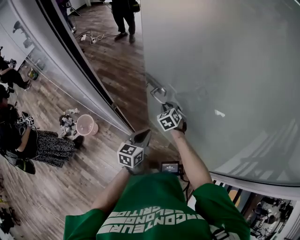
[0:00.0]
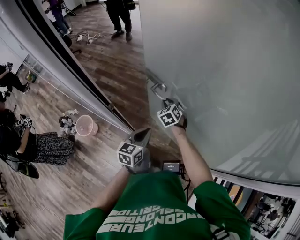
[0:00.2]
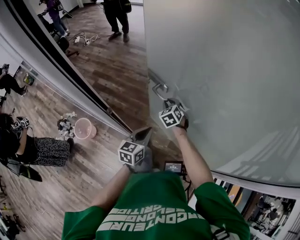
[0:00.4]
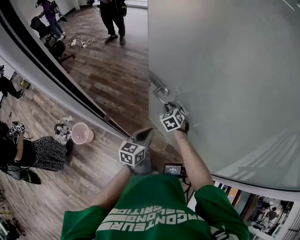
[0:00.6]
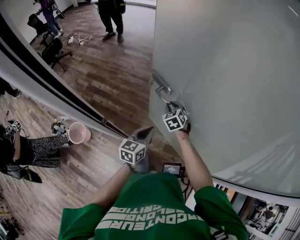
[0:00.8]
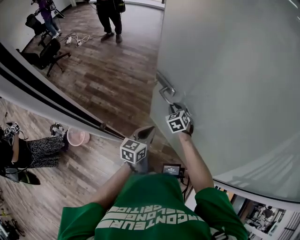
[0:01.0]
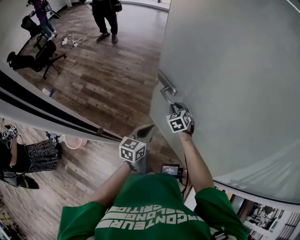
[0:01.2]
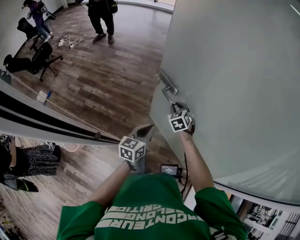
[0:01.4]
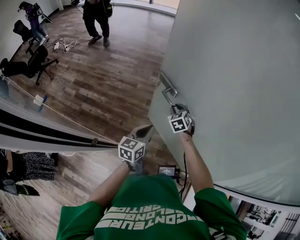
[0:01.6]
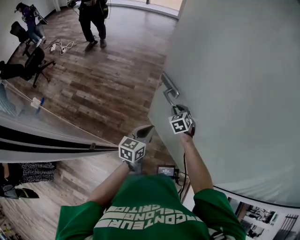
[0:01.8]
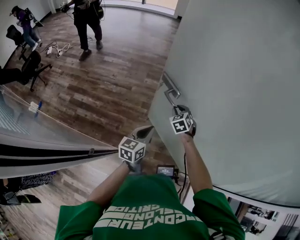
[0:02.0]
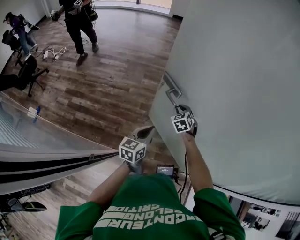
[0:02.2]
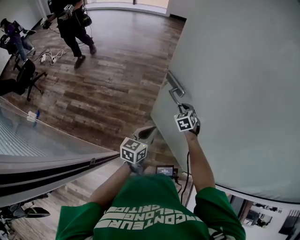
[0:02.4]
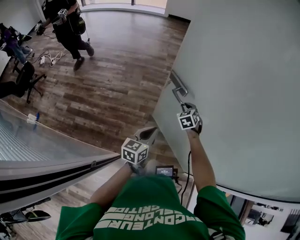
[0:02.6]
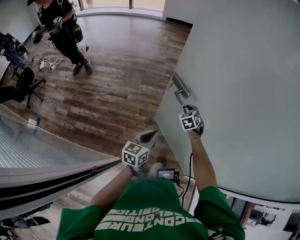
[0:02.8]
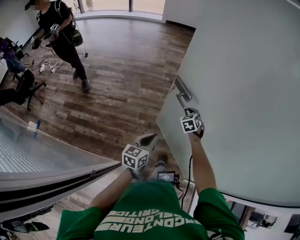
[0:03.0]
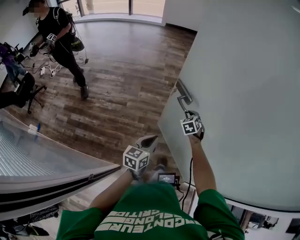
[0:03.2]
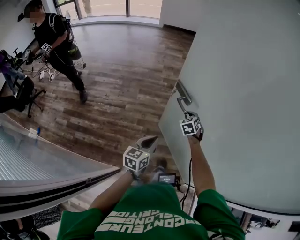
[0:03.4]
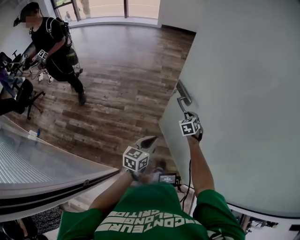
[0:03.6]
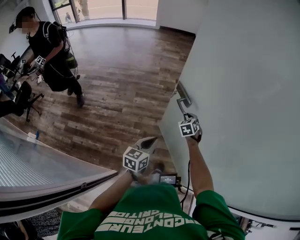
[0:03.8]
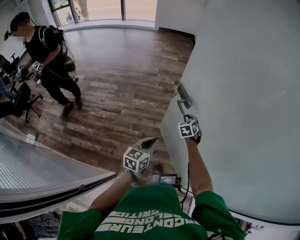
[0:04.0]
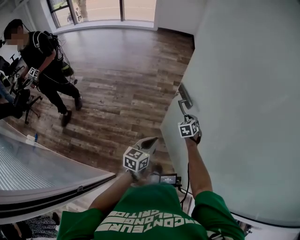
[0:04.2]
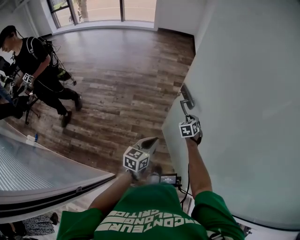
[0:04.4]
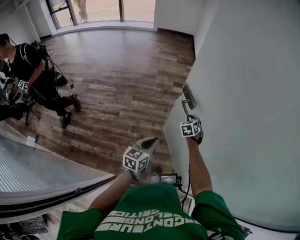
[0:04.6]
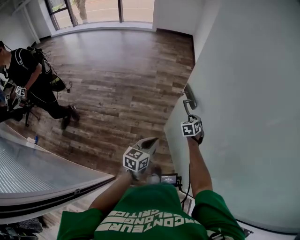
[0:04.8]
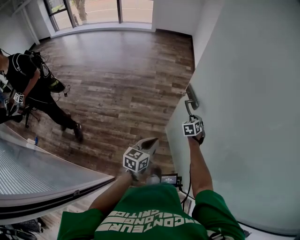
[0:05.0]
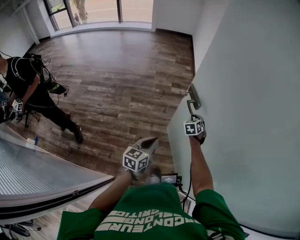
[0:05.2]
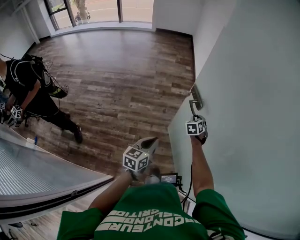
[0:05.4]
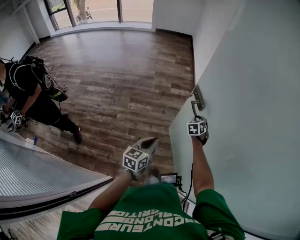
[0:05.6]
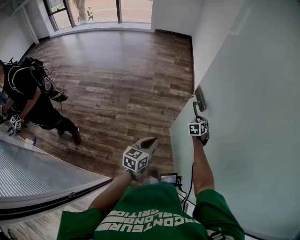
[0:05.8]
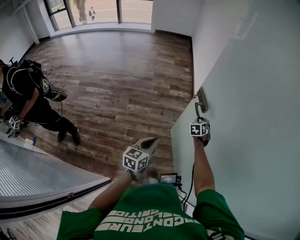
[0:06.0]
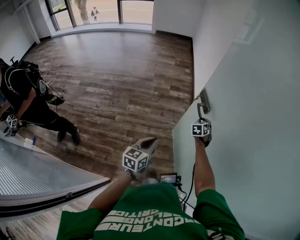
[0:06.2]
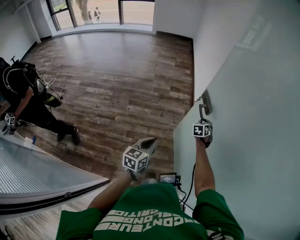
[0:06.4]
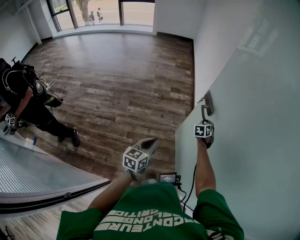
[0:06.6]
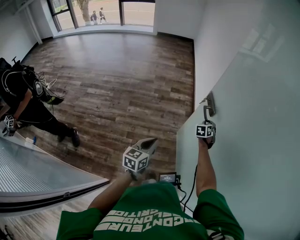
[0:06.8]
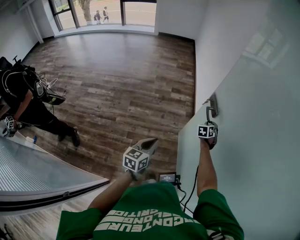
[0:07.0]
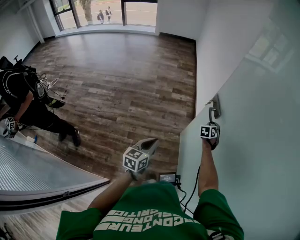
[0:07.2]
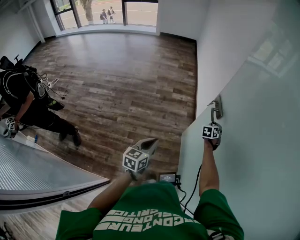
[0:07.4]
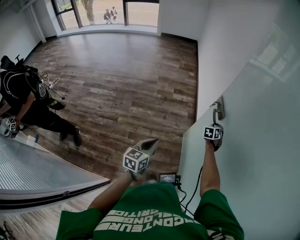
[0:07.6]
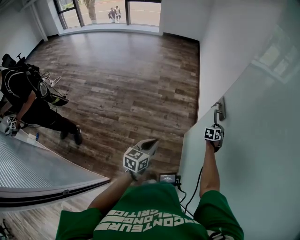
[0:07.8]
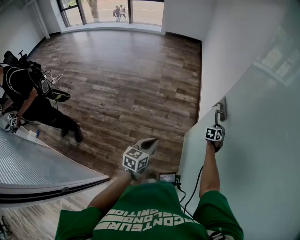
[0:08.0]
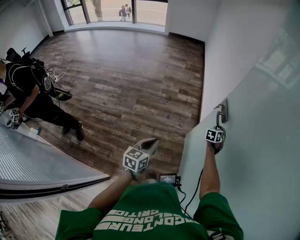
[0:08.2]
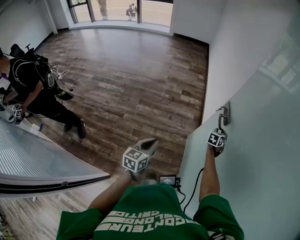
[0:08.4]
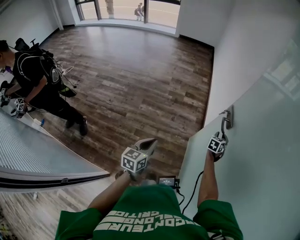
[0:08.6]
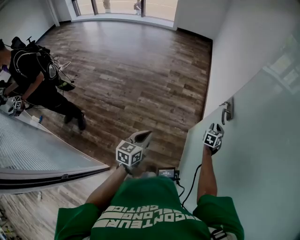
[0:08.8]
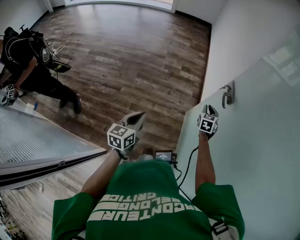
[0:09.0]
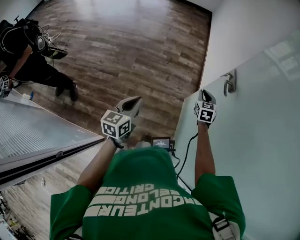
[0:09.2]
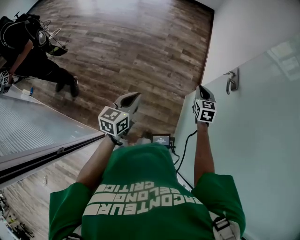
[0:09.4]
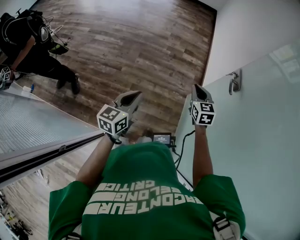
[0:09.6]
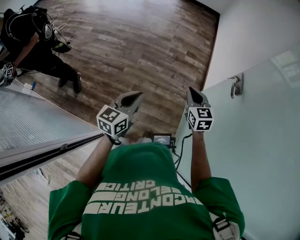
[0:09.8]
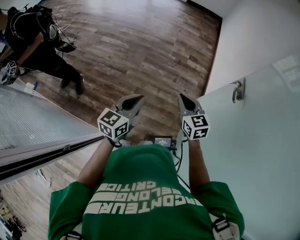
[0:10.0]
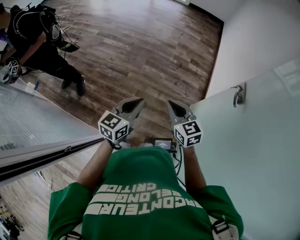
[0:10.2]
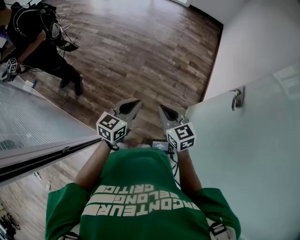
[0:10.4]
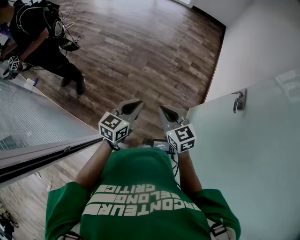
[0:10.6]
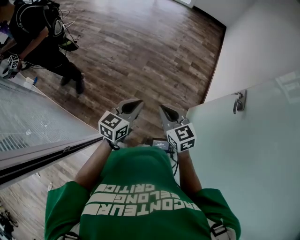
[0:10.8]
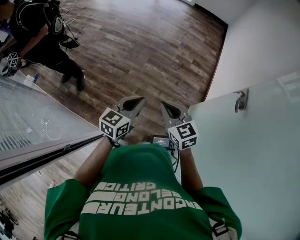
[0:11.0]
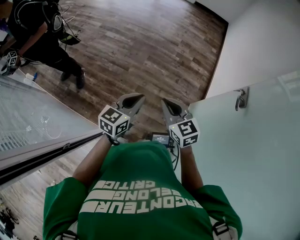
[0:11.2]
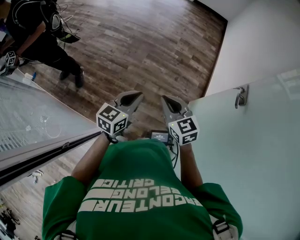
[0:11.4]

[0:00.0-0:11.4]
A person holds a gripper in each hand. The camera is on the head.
0:00.0 to 0:01.4: The right gripper is displaced forward and to the right by approximately 15 cm, while the left gripper travels forward by about 15 cm.
0:01.4 to 0:02.8: The right gripper is displaced forward and to the right by roughly 20 cm, while the left gripper shifts about 10 cm forward.
0:02.8 to 0:04.2: Both grippers travel together forward and to the right, about 15 cm.
0:04.2 to 0:05.6: The left gripper is displaced forward by some 5 cm. The right gripper shifts about 15 cm forward and to the right.
0:05.6 to 0:07.2: The right gripper travels to the right and forward by some 15 cm.
0:07.2 to 0:08.6: The grippers make only small movements.
0:08.6 to 0:10.0: The left gripper moves some 15 cm. The right gripper changes place by some 40 cm, rotates roughly 60 degrees, and closes.
0:10.0 to 0:11.4: The right gripper heads to the left, covering some 10 cm.

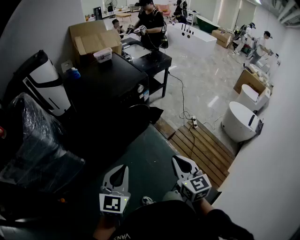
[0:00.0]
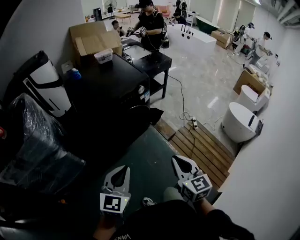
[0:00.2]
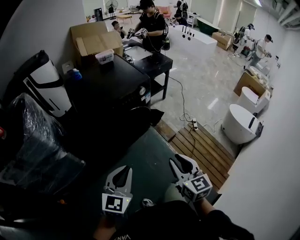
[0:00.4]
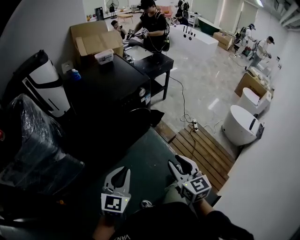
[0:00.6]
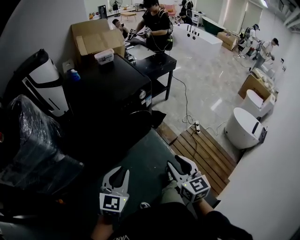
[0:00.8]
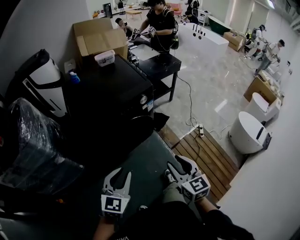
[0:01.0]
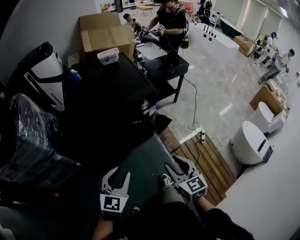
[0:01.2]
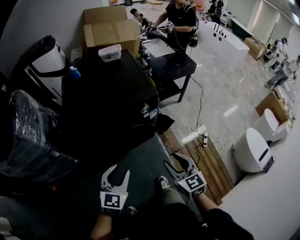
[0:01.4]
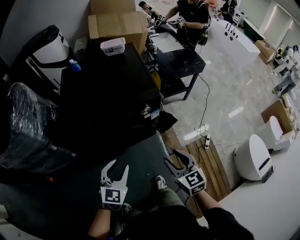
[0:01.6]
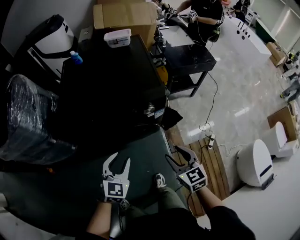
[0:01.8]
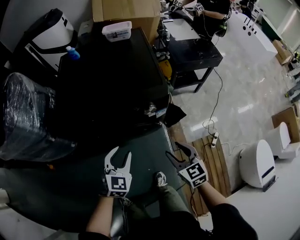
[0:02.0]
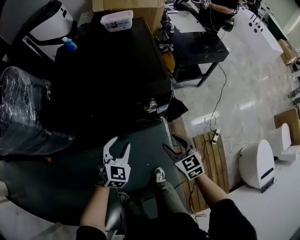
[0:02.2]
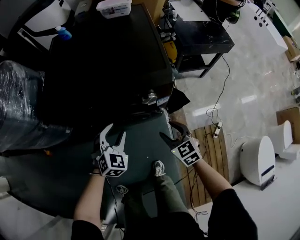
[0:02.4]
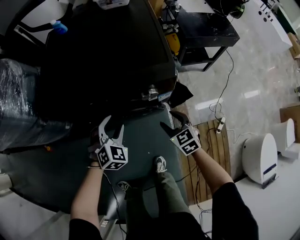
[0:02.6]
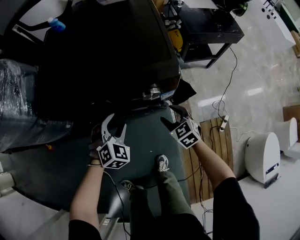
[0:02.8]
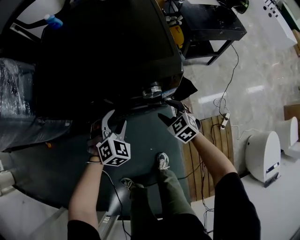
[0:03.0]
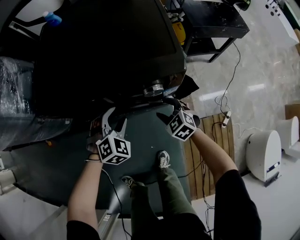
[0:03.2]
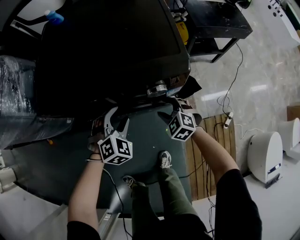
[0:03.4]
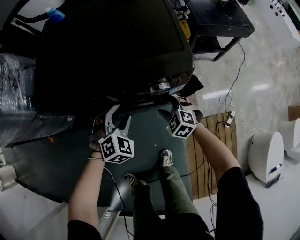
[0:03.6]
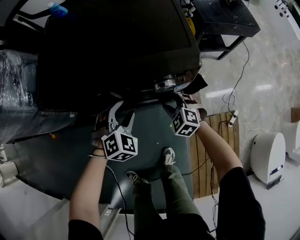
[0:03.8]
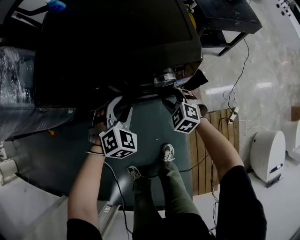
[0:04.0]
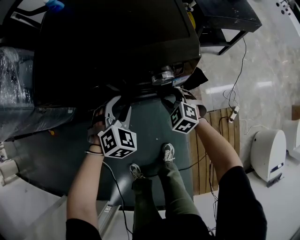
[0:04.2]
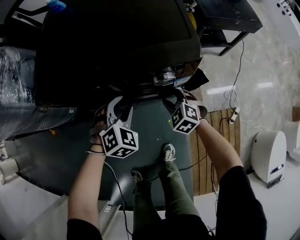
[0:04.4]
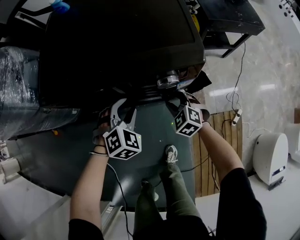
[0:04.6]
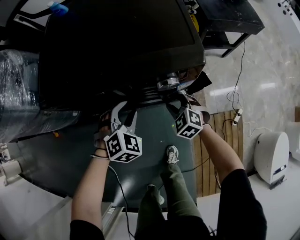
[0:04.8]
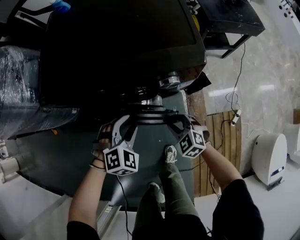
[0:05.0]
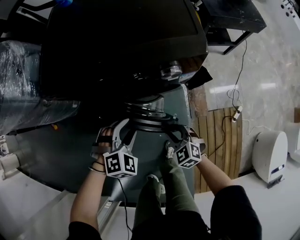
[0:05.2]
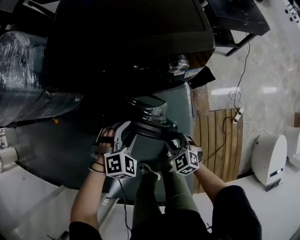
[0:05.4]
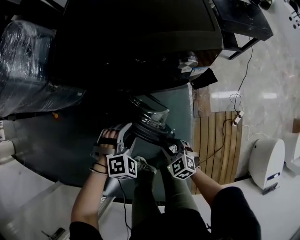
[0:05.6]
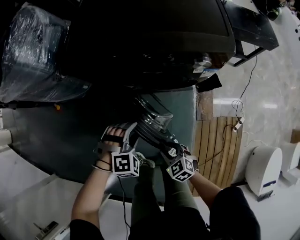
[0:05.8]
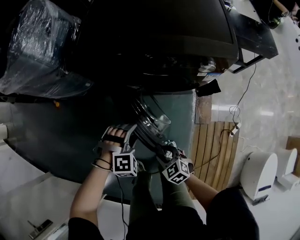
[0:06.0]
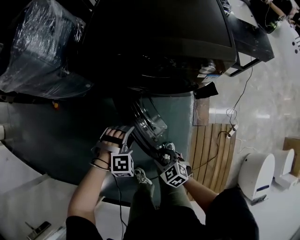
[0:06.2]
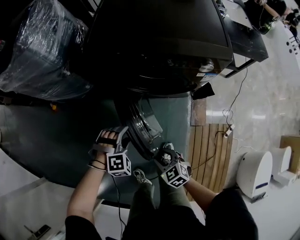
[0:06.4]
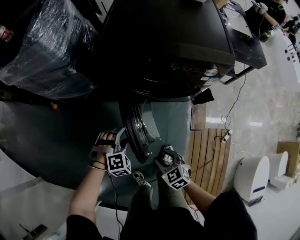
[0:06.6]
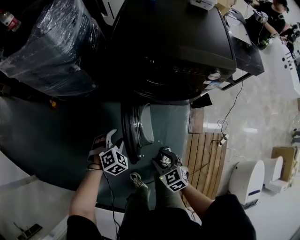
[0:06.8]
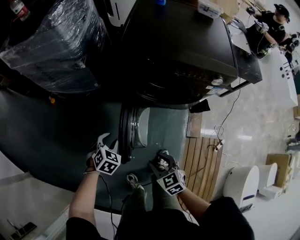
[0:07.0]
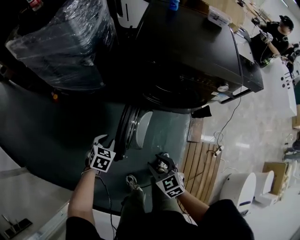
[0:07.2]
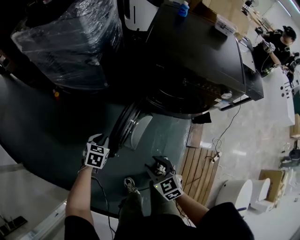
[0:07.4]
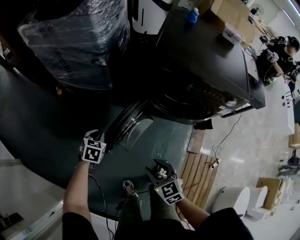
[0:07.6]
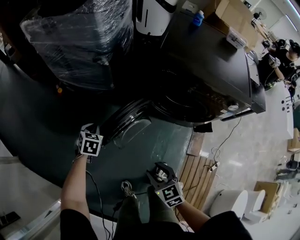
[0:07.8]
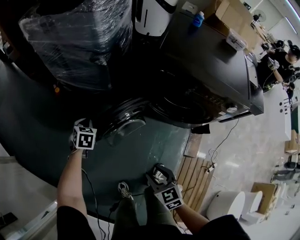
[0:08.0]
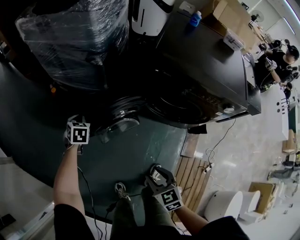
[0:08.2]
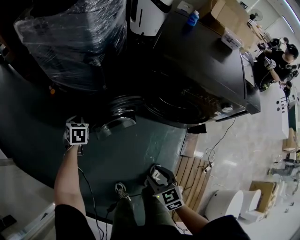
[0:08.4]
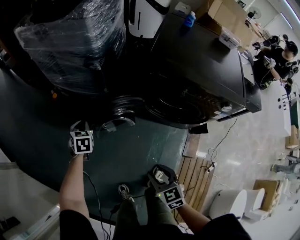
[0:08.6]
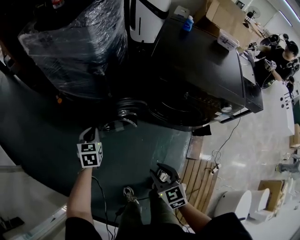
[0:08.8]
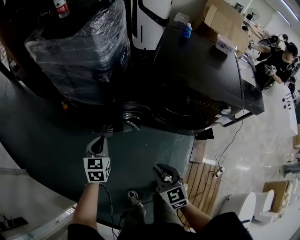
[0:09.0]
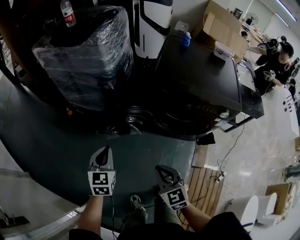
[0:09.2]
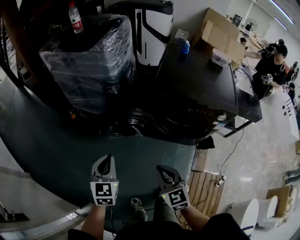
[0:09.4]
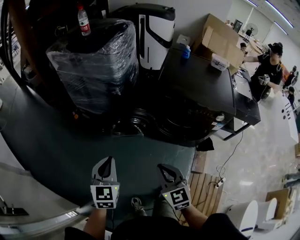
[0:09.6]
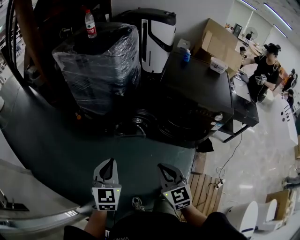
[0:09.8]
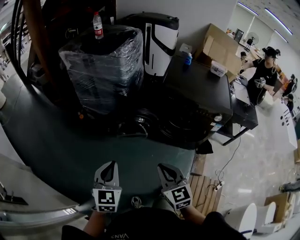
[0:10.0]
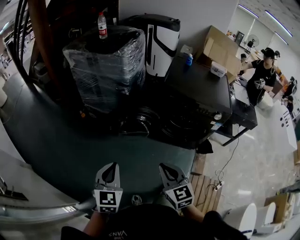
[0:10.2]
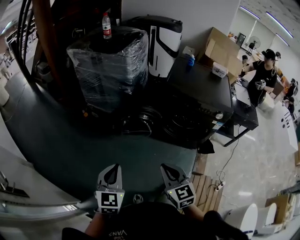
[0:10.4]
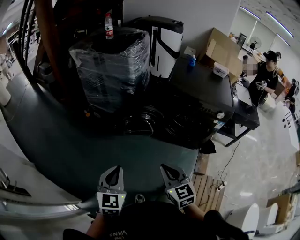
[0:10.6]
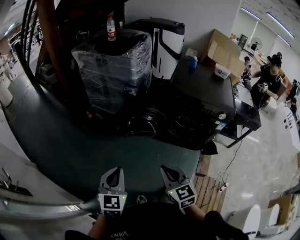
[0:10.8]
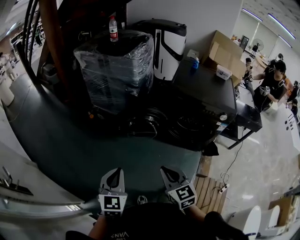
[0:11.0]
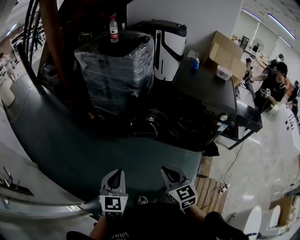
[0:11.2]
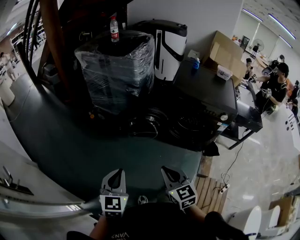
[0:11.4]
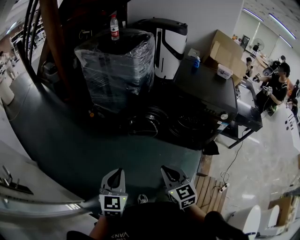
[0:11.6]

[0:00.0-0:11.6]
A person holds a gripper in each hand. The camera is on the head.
0:00.0 to 0:01.4: Both grippers move forward, some 25 cm. The left gripper opens; the right gripper rotates approximately 20 degrees, and opens its fingers.
0:01.4 to 0:02.8: The left gripper shifts about 30 cm forward and downward, and turns by some 40 degrees. Meanwhile the right gripper goes about 40 cm downward and forward, and changes its angle by approximately 30 degrees.
0:02.8 to 0:04.4: The right gripper moves approximately 5 cm, swivels some 20 degrees, and closes.
0:04.4 to 0:05.8: The two grippers go some 25 cm backward and to the left. The left gripper changes its angle by approximately 20 degrees. The right gripper swivels roughly 20 degrees.
0:05.8 to 0:07.2: The left gripper heads to the left, covering about 30 cm, rotates around the line of its fingers by some 70 degrees, counterclockwise from behind, and closes. The right gripper is displaced to the left and upward by roughly 20 cm.
0:07.2 to 0:08.8: The right gripper shifts by approximately 5 cm. The left gripper is displaced forward, to the left and upward by about 15 cm, and turns by approximately 30 degrees.
0:08.8 to 0:10.2: The right gripper travels upward, backward and to the left by some 25 cm, and closes its fingers. Meanwhile the left gripper is displaced backward and upward by some 40 cm, and swivels roughly 20 degrees.
0:10.2 to 0:11.6: The left gripper goes about 5 cm backward. Meanwhile the right gripper shifts by some 5 cm.
